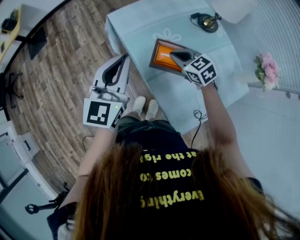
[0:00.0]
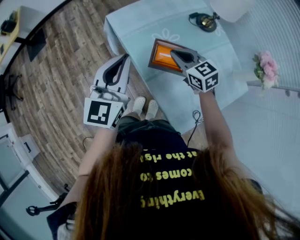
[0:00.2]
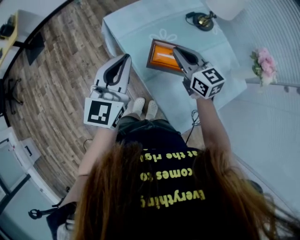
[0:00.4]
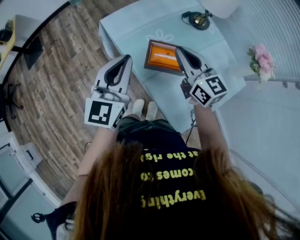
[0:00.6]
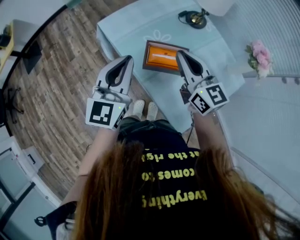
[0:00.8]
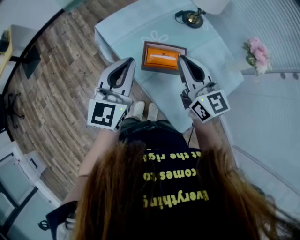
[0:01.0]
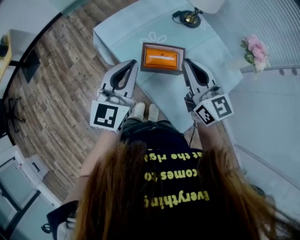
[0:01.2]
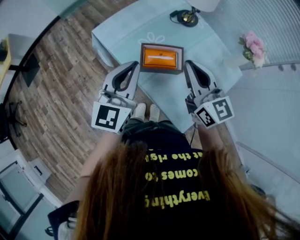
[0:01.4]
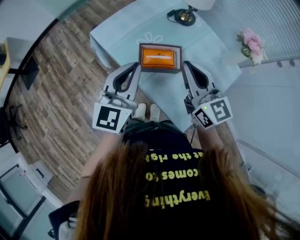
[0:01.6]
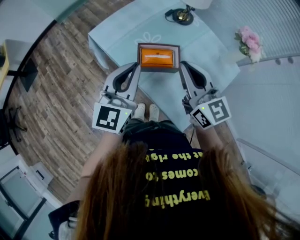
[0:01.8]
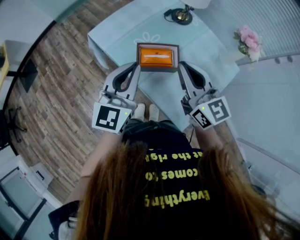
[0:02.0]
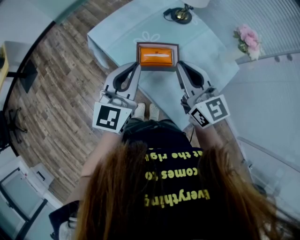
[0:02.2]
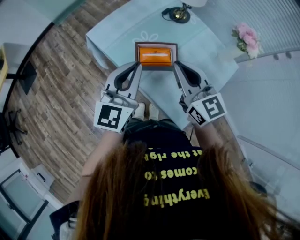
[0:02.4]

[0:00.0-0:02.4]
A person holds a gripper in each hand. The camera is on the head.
0:00.0 to 0:01.2: The right gripper shifts some 20 cm upward and backward, and angles its fingers upward, by approximately 40 degrees, while the left gripper moves to the right, roughly 5 cm.
0:01.2 to 0:02.4: There are only small adjustments of the grippers.

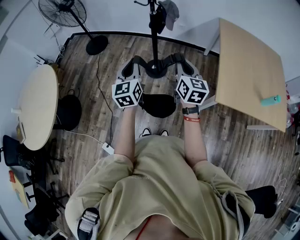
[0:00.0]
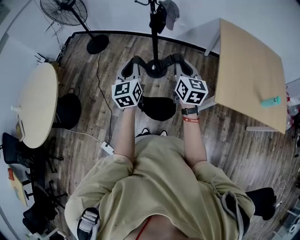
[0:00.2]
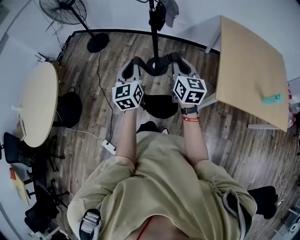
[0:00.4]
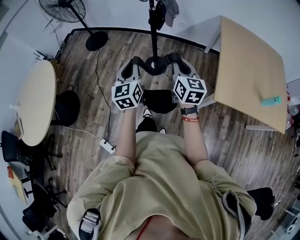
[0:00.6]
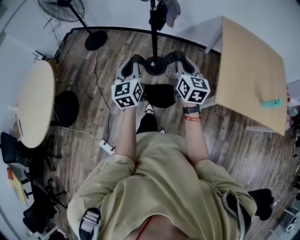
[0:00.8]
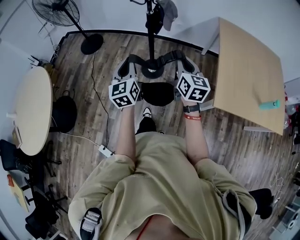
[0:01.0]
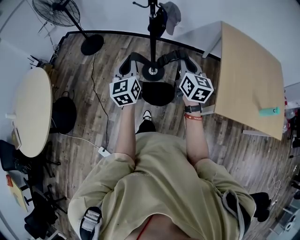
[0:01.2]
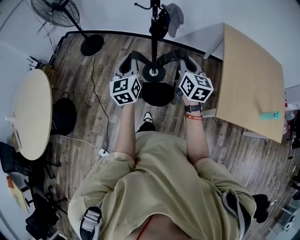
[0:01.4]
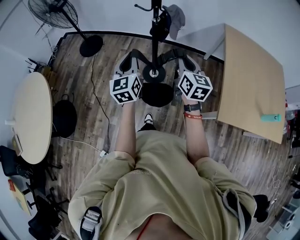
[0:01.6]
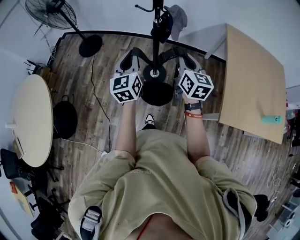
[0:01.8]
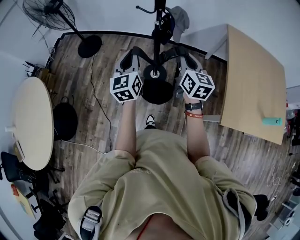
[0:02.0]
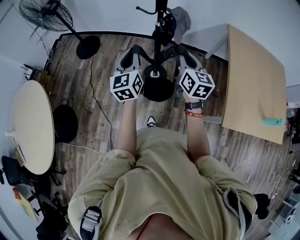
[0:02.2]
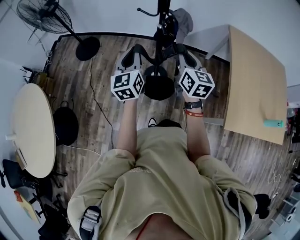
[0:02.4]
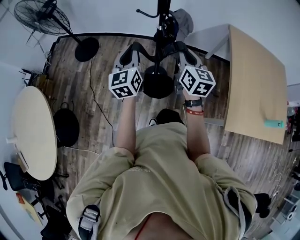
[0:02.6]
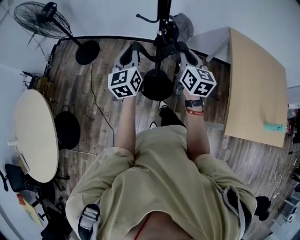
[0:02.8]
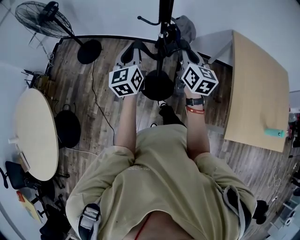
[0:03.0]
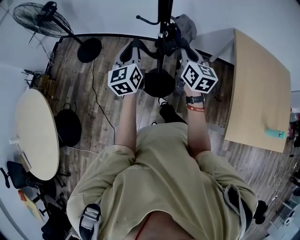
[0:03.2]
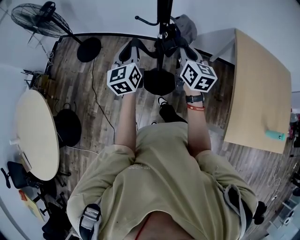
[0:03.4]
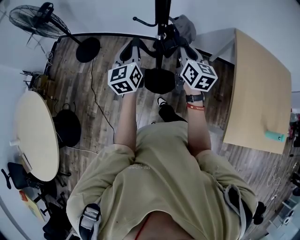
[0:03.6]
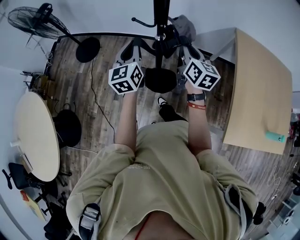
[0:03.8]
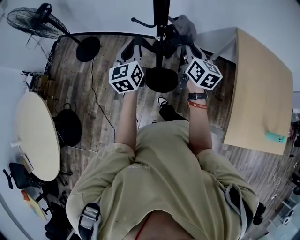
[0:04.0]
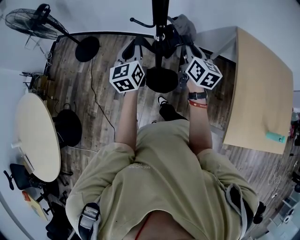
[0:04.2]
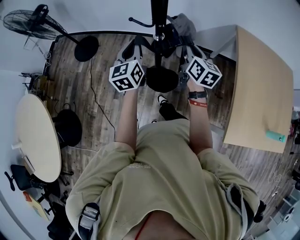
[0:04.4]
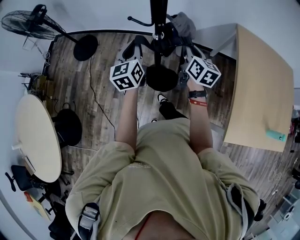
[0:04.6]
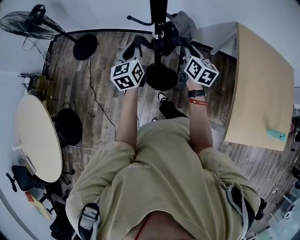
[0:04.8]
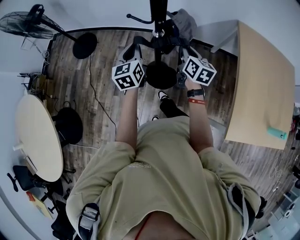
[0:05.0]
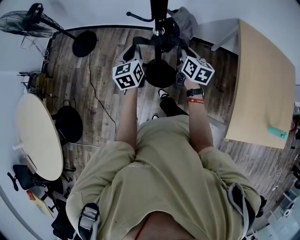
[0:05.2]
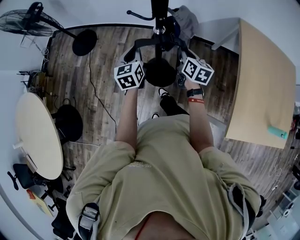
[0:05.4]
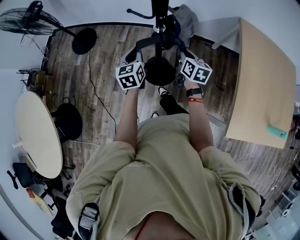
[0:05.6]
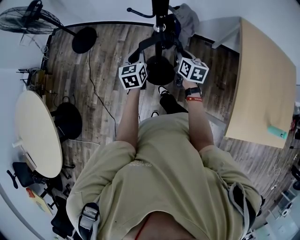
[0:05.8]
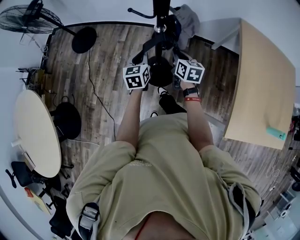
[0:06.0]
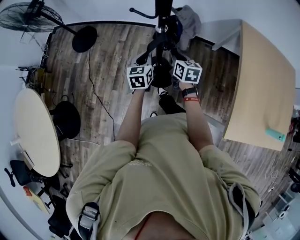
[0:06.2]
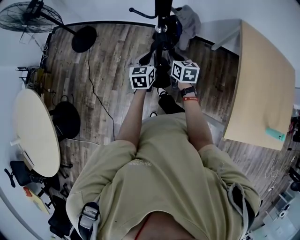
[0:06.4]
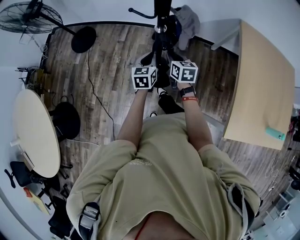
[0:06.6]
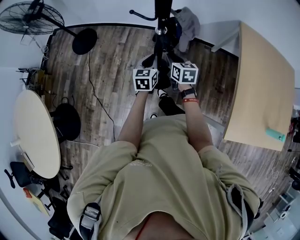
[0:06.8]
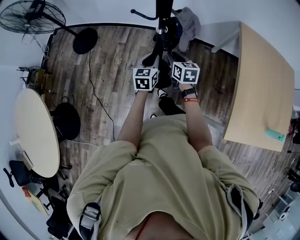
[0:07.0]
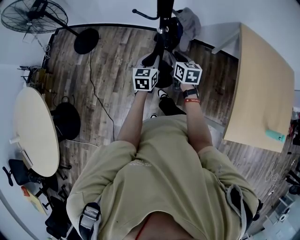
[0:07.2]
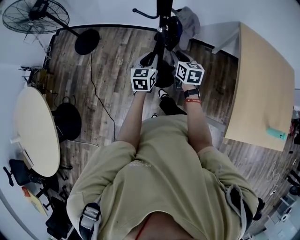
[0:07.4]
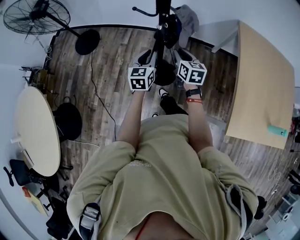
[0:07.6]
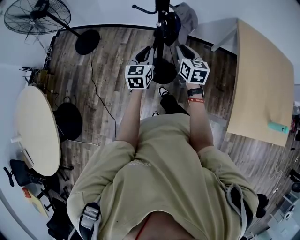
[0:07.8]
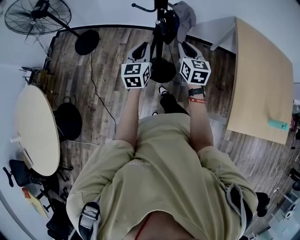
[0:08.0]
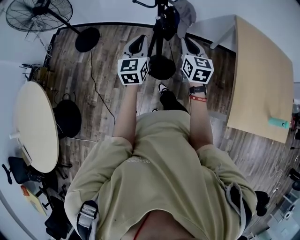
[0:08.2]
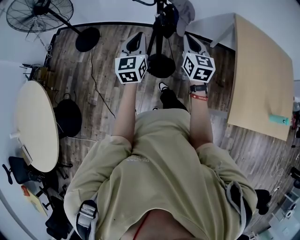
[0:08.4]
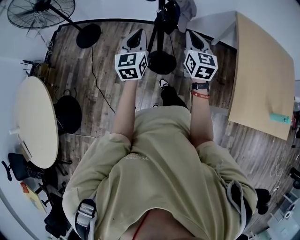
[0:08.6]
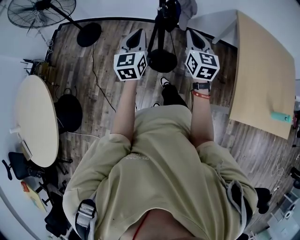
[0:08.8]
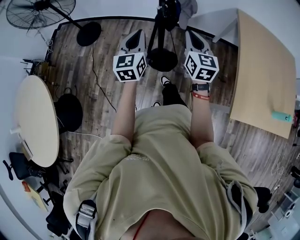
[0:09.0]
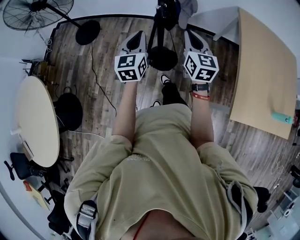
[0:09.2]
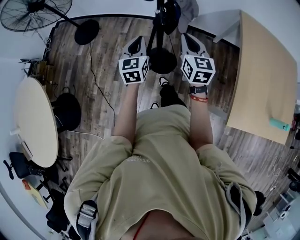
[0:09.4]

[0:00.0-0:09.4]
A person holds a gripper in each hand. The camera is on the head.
0:00.0 to 0:01.6: Both grippers travel together forward, roughly 20 cm.
0:01.6 to 0:03.2: The two grippers go roughly 25 cm forward.
0:03.2 to 0:04.8: The right gripper heads downward, forward and to the right, covering approximately 15 cm. Meanwhile the left gripper shifts roughly 10 cm forward and downward.
0:04.8 to 0:06.2: The right gripper heads downward and to the left, covering some 15 cm, while the left gripper goes some 15 cm downward.
0:06.2 to 0:07.8: The grippers both shift upward and backward by about 10 cm.
0:07.8 to 0:09.4: The left gripper moves roughly 10 cm upward and comes back.

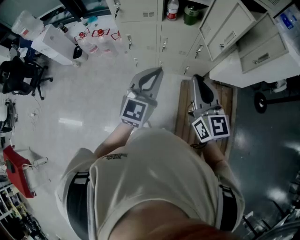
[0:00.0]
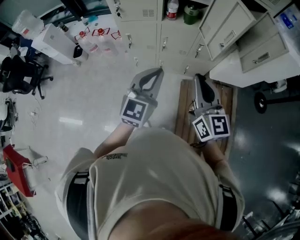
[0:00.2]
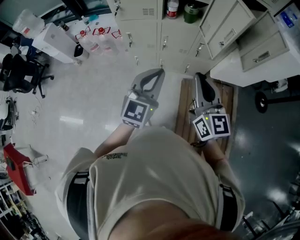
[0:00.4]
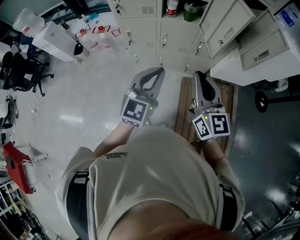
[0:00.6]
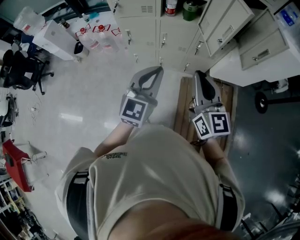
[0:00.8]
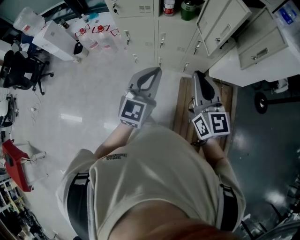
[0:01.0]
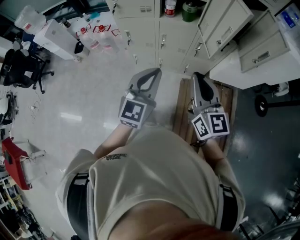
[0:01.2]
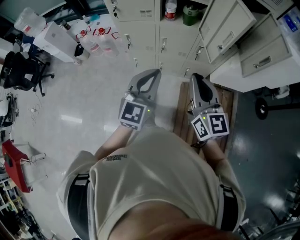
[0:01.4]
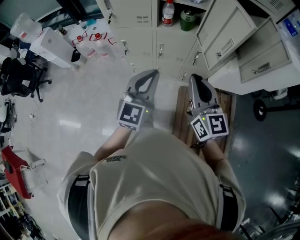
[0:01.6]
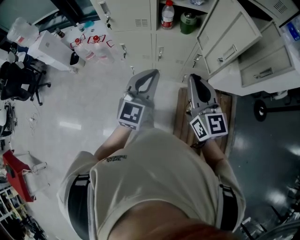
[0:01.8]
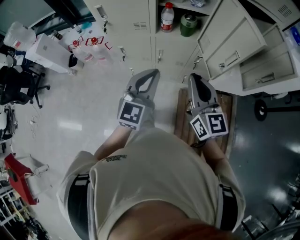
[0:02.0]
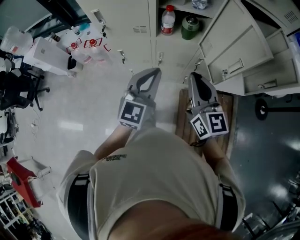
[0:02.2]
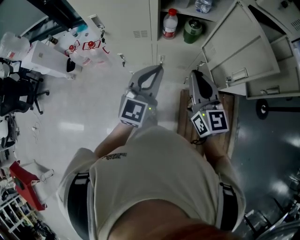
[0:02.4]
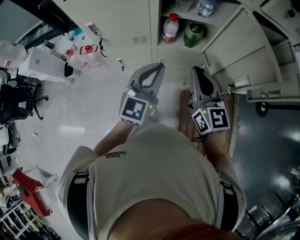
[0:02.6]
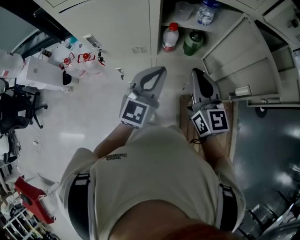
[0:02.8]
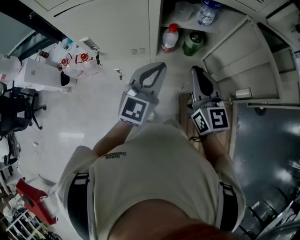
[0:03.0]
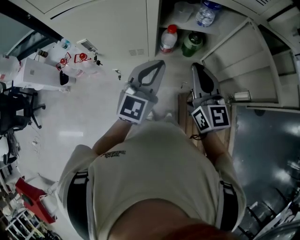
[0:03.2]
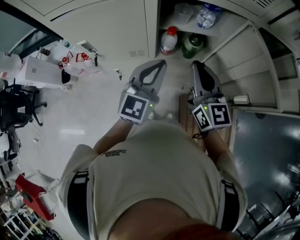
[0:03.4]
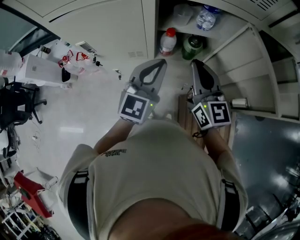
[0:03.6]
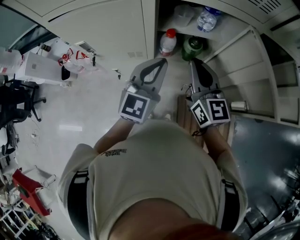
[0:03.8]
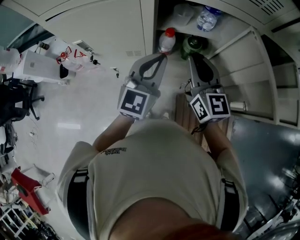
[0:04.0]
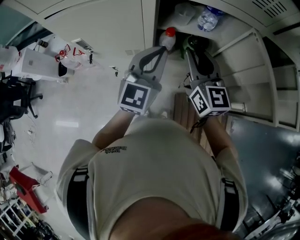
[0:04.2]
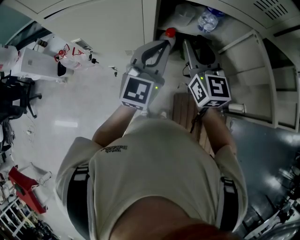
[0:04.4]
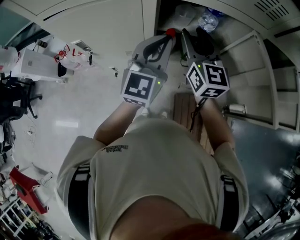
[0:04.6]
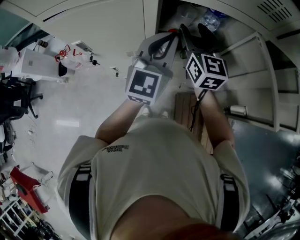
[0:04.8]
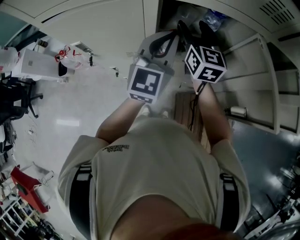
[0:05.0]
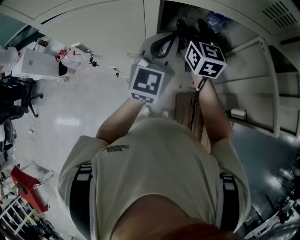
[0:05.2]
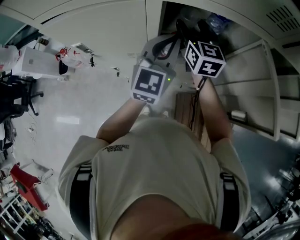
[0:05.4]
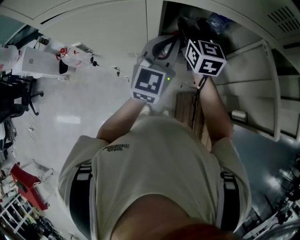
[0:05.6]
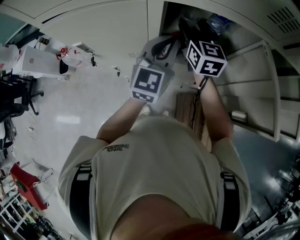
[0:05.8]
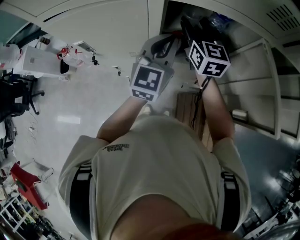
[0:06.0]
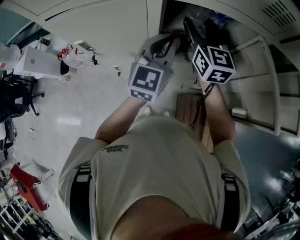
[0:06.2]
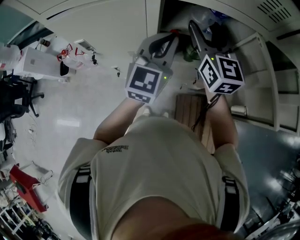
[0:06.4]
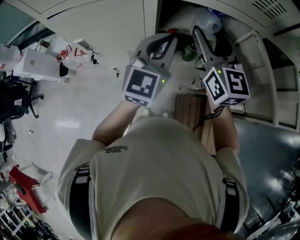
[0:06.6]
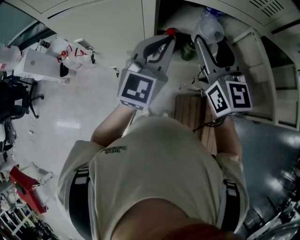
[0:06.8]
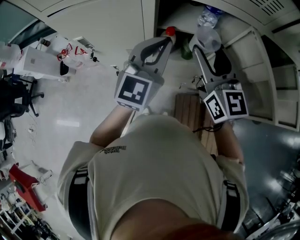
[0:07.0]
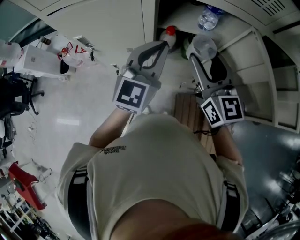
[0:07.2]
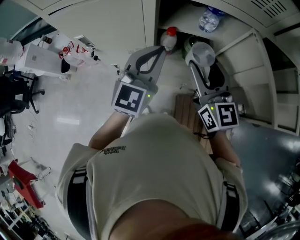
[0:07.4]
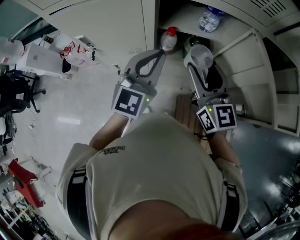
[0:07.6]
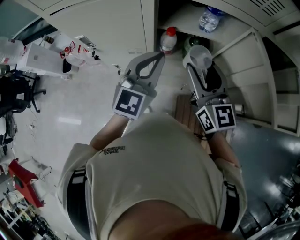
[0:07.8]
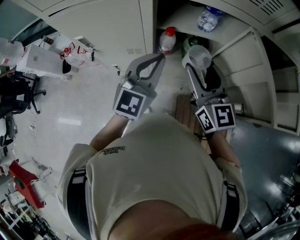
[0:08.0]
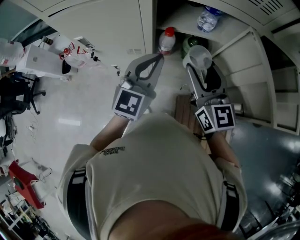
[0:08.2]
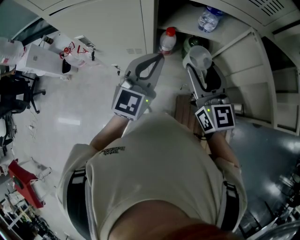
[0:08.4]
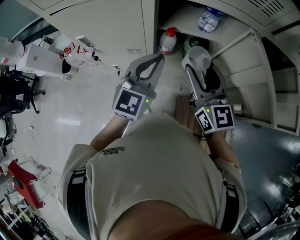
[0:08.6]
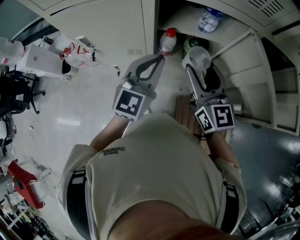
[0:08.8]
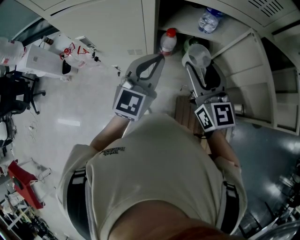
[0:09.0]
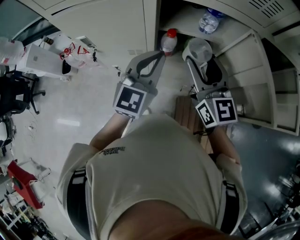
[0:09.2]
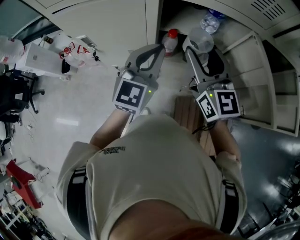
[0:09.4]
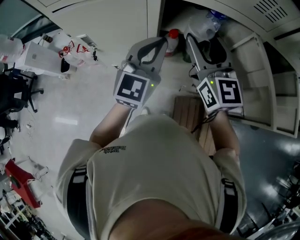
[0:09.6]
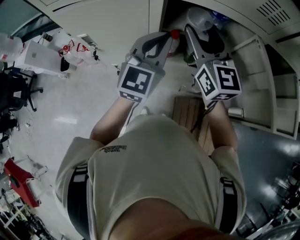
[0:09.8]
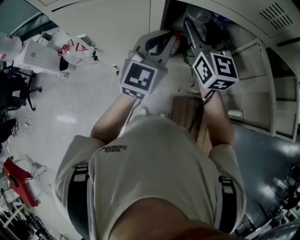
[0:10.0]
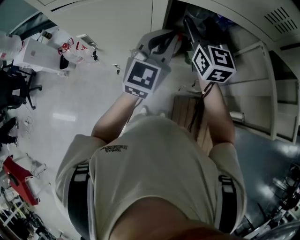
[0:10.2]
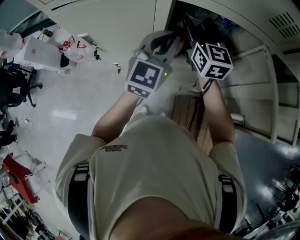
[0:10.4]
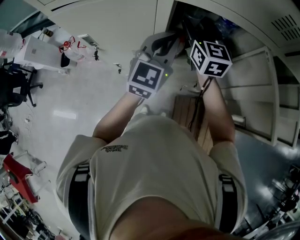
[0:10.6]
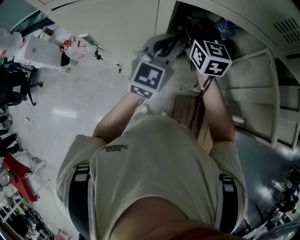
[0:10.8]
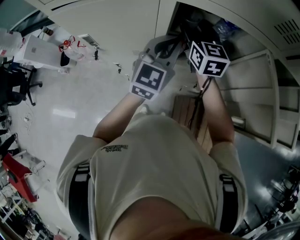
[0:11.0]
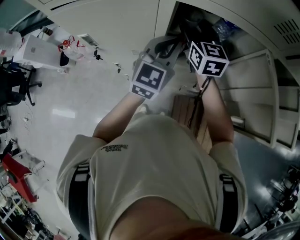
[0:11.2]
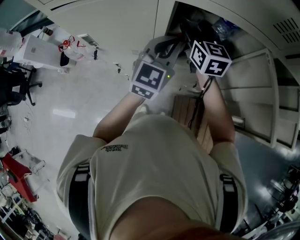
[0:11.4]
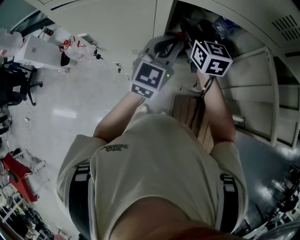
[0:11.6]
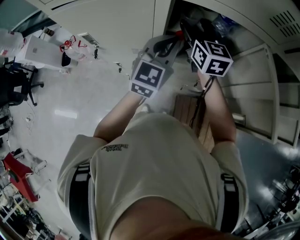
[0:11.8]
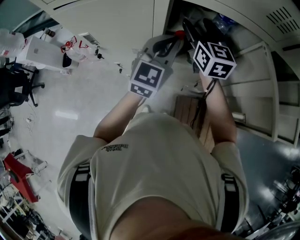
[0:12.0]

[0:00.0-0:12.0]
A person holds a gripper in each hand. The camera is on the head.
0:00.0 to 0:01.6: The two grippers go about 5 cm forward.
0:01.6 to 0:03.0: The two grippers go approximately 25 cm forward.
0:03.0 to 0:04.4: The grippers both shift forward by about 10 cm. The right gripper opens up.
0:04.4 to 0:06.0: The right gripper moves forward, approximately 10 cm.
0:06.0 to 0:07.6: The right gripper goes roughly 20 cm backward; the left gripper is displaced backward by approximately 10 cm.
0:07.6 to 0:09.0: There are only small adjustments of the grippers.
0:09.0 to 0:10.4: The right gripper goes about 15 cm forward. Meanwhile the left gripper shifts approximately 10 cm forward.
0:10.4 to 0:12.0: The grippers make only small movements.
